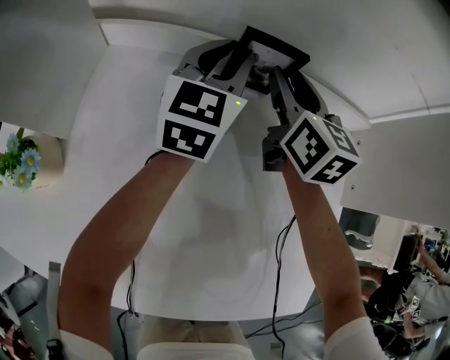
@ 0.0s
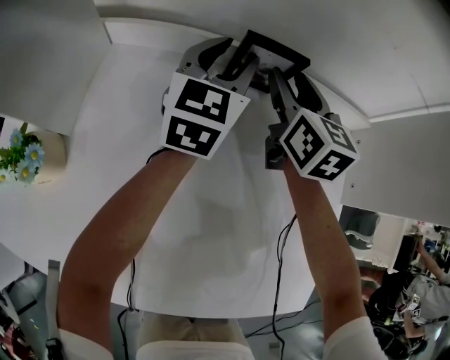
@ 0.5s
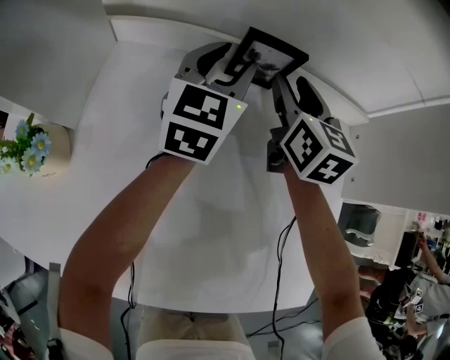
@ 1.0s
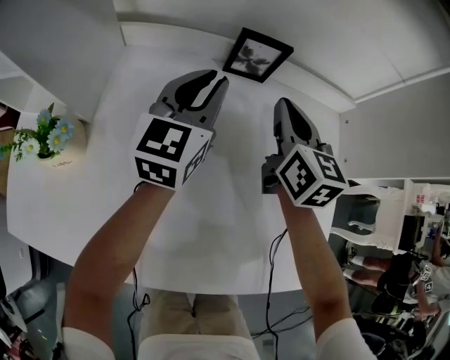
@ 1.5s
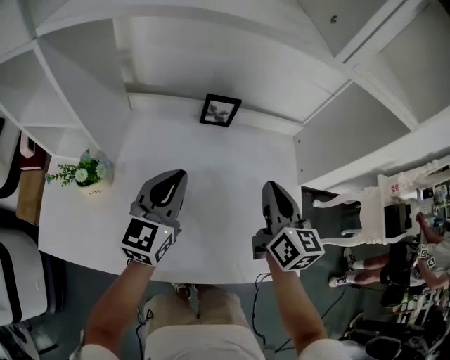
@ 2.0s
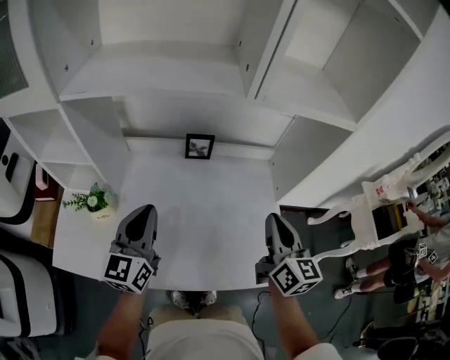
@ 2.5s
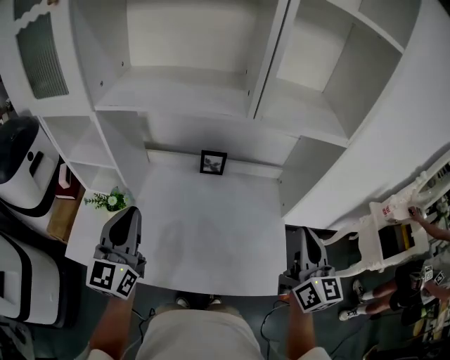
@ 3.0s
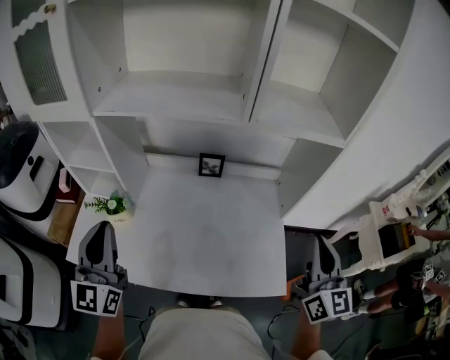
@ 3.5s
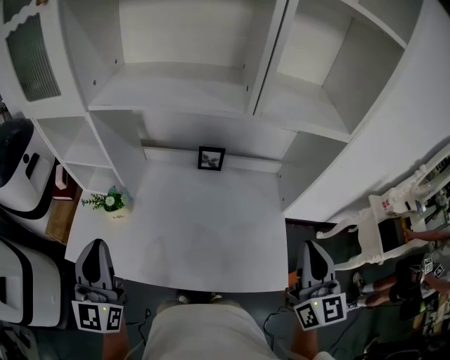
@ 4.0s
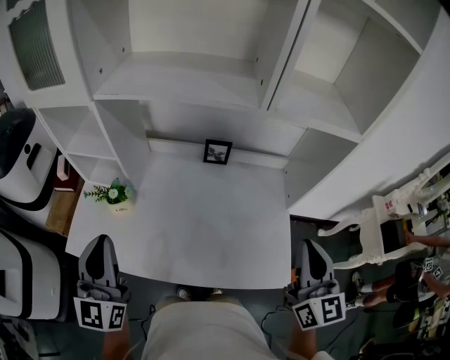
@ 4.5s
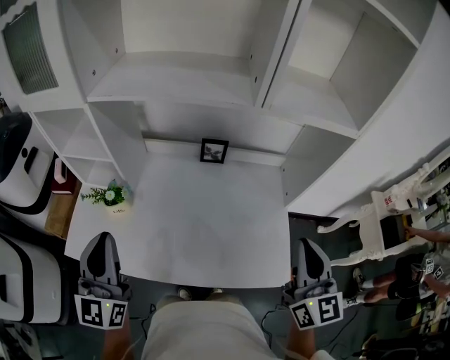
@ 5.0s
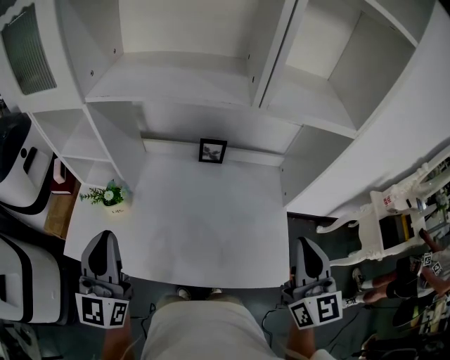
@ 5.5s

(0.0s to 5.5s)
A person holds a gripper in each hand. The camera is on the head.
0.0s - 2.0s: The right gripper shifts approximately 30 cm backward and upward, and closes; the left gripper travels backward by roughly 30 cm.
2.0s - 3.5s: The right gripper is displaced upward, backward and to the right by some 30 cm, and rotates about 20 degrees. The left gripper travels upward, backward and to the left by approximately 30 cm, and changes its angle by roughly 30 degrees.
3.5s - 5.5s: The right gripper travels to the left by roughly 5 cm.

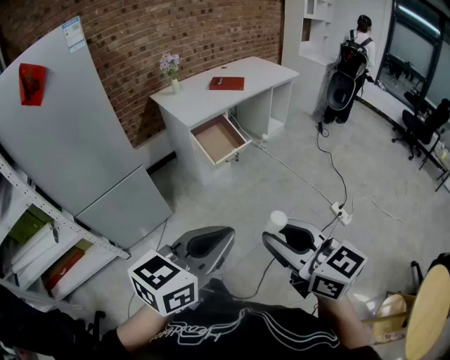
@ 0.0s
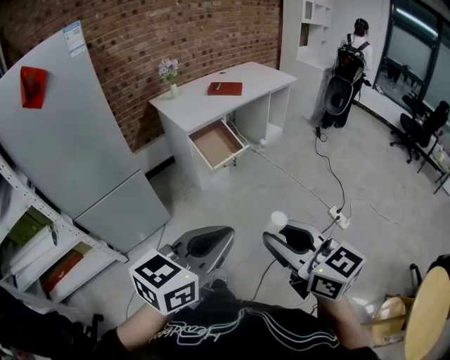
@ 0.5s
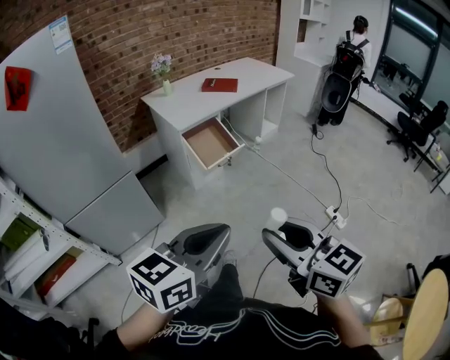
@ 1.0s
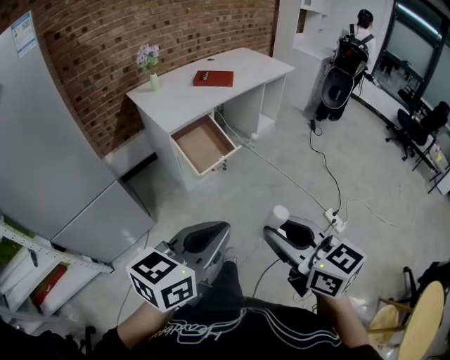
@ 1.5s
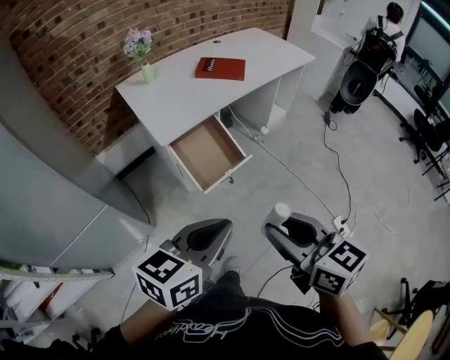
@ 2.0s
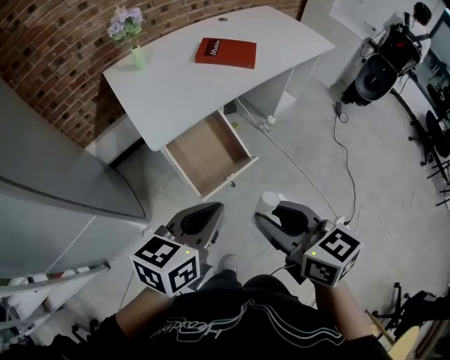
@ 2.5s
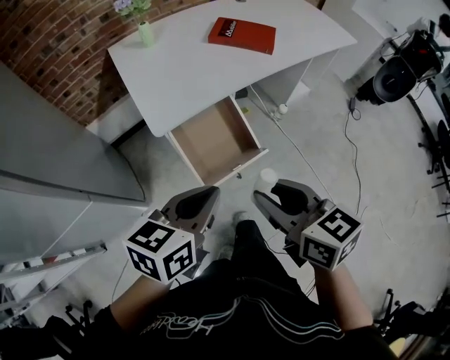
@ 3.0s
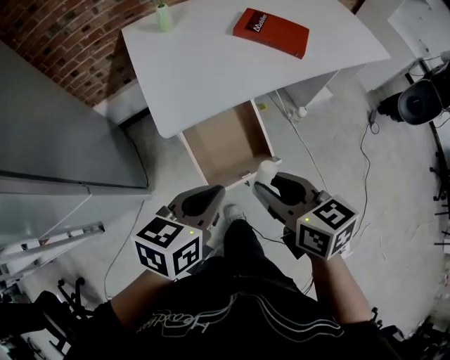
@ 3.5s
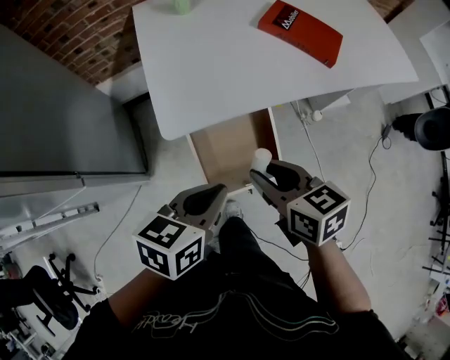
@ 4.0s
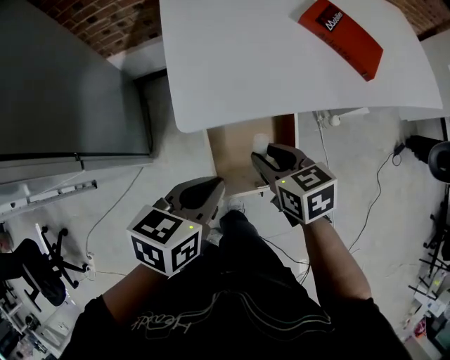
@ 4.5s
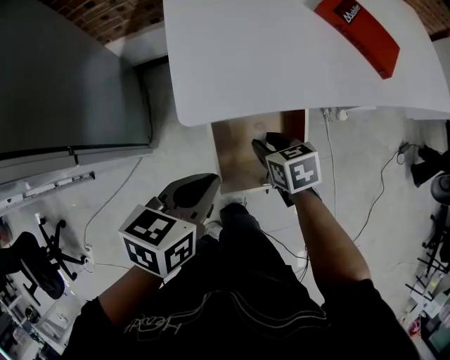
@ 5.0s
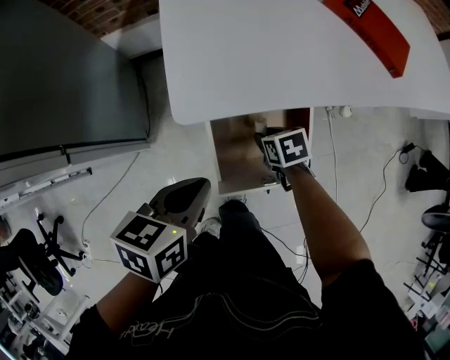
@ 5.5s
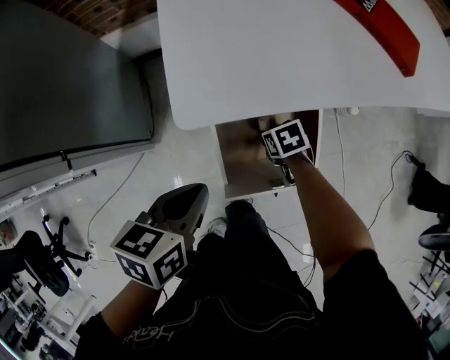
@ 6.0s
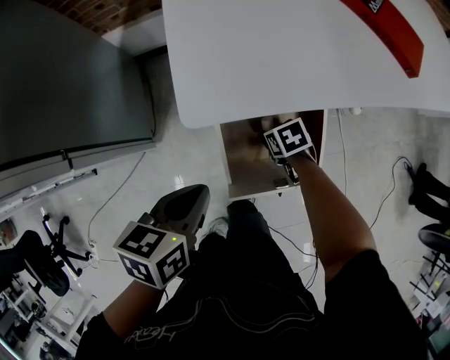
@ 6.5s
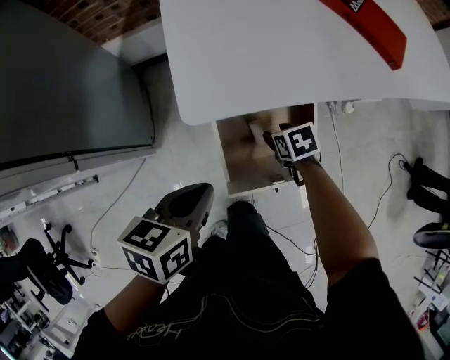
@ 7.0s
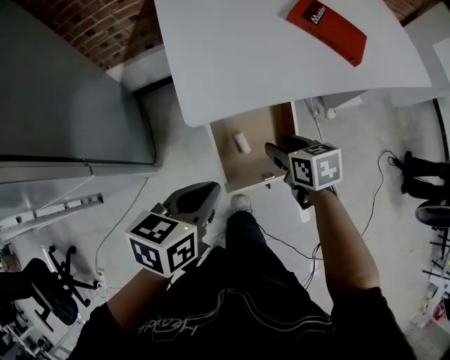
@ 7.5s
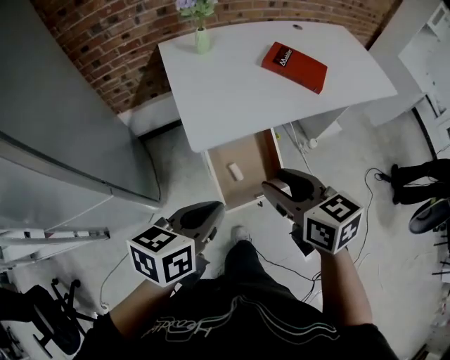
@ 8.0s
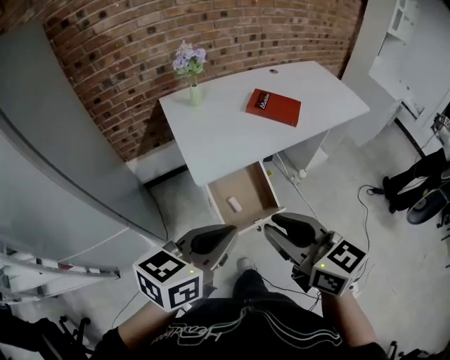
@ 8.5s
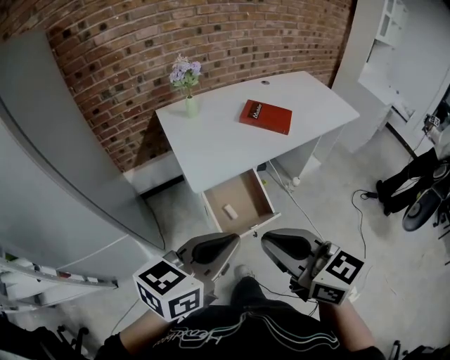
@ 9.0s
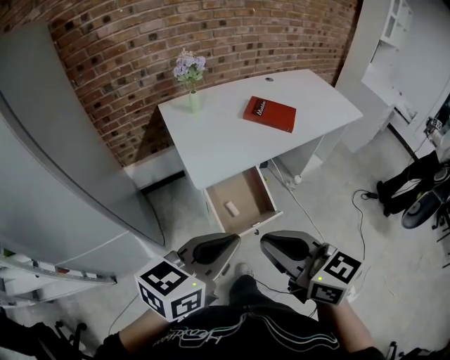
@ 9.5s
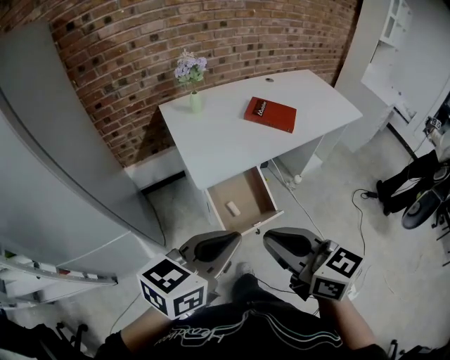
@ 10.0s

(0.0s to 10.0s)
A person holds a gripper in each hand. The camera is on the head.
0.0s - 2.0s: The two grippers travel together, forward, about 50 cm.
2.0s - 4.0s: Both grippers move forward and downward, approximately 40 cm. The left gripper rotates about 30 degrees. The right gripper changes its angle by approximately 30 degrees.
4.0s - 6.0s: The right gripper is displaced downward by some 35 cm, and tilts its fingers some 40 degrees downward. Meanwhile the left gripper is displaced downward and to the left by about 15 cm.
6.0s - 8.0s: The left gripper moves upward and backward, some 25 cm, and changes its angle by roughly 20 degrees; the right gripper goes about 50 cm upward, and tilts its fingers approximately 40 degrees upward.
8.0s - 10.0s: The left gripper is displaced upward and backward by some 20 cm, and swivels some 20 degrees. The right gripper shifts about 25 cm backward and upward, and closes up.

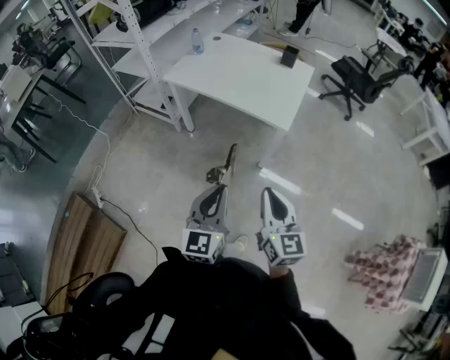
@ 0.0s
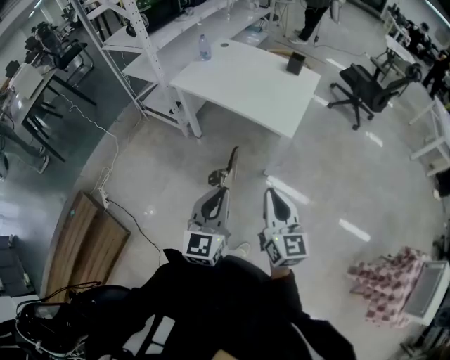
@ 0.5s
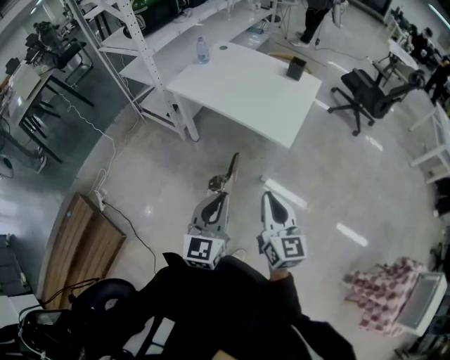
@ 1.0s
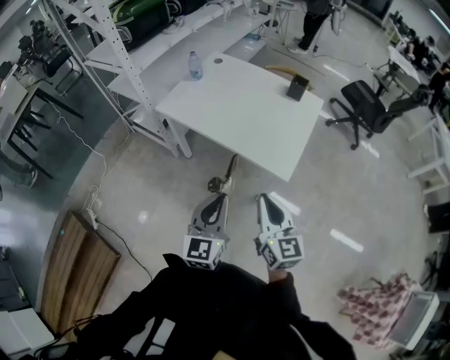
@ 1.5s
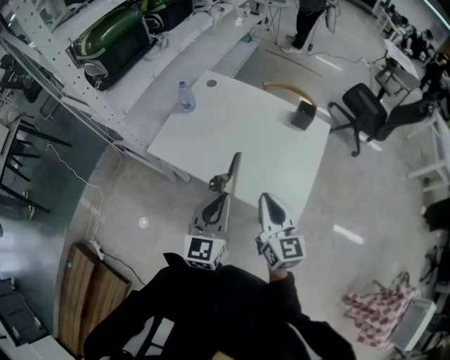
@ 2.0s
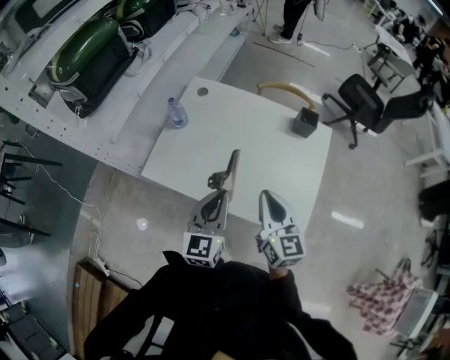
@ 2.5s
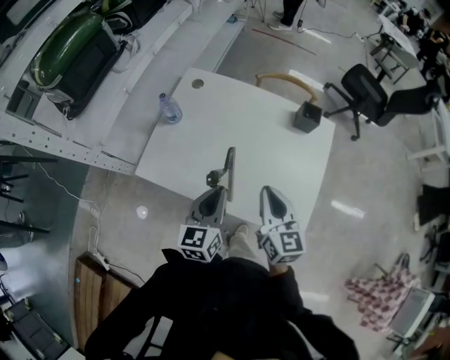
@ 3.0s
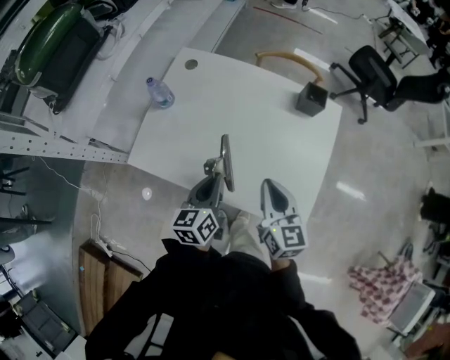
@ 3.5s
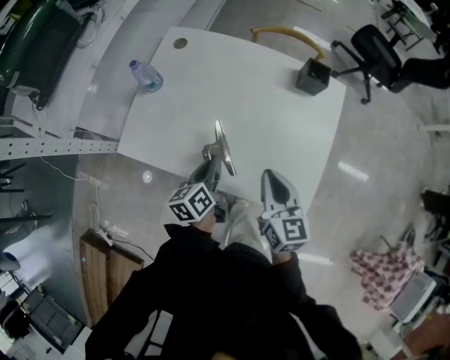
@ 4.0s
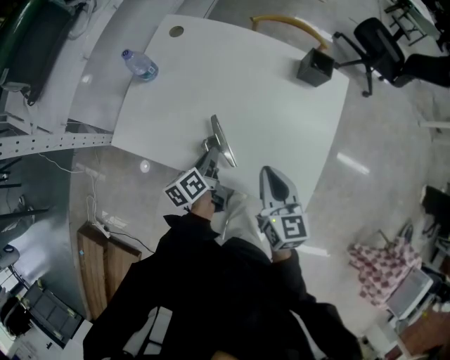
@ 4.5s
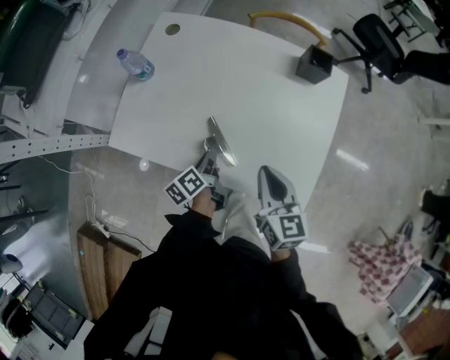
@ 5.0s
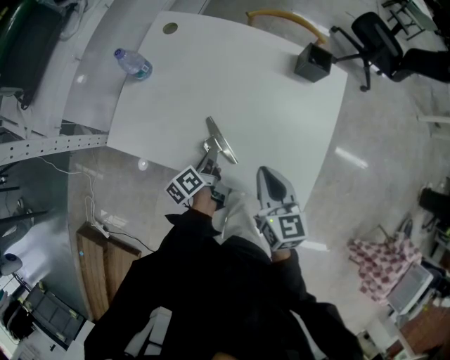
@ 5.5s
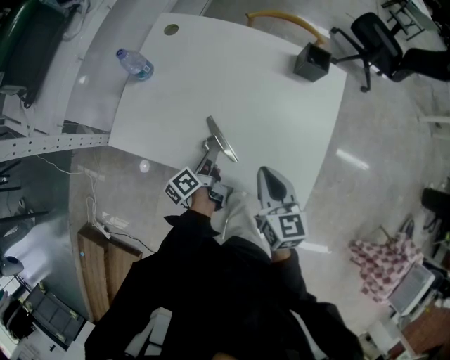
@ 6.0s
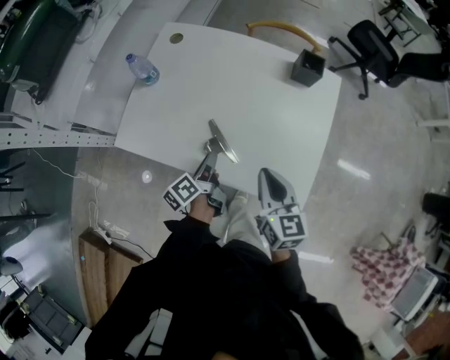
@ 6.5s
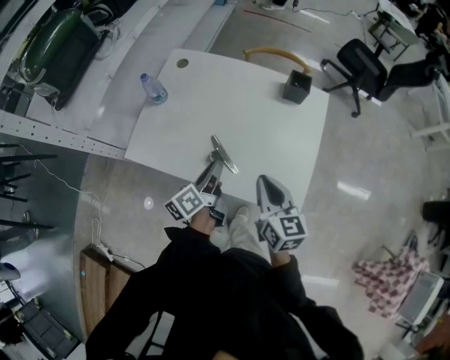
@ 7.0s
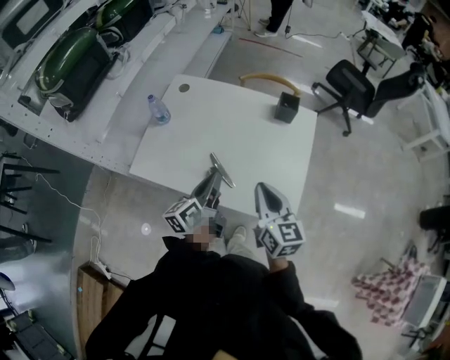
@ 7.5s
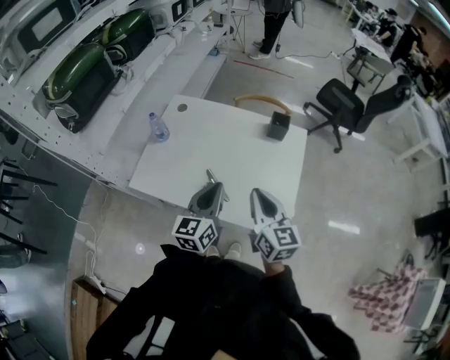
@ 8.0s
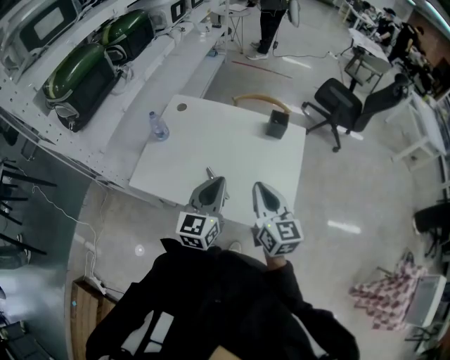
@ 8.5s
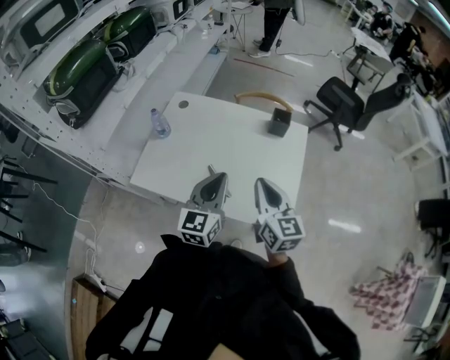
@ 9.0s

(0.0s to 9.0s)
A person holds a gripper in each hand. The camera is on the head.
0.0s - 2.0s: The two grippers travel together, forward, some 50 cm.
2.0s - 4.5s: The right gripper travels downward and forward by roughly 20 cm. The left gripper moves downward and forward, some 30 cm, and twists roughly 50 degrees counterclockwise, seen from behind.
4.5s - 7.0s: The right gripper moves about 5 cm. The left gripper travels upward by approximately 10 cm, and opens.
7.0s - 9.0s: The right gripper moves upward, some 10 cm; the left gripper goes roughly 15 cm upward, rotates around the line of its fingers by some 60 degrees, clockwise from behind, and closes up.

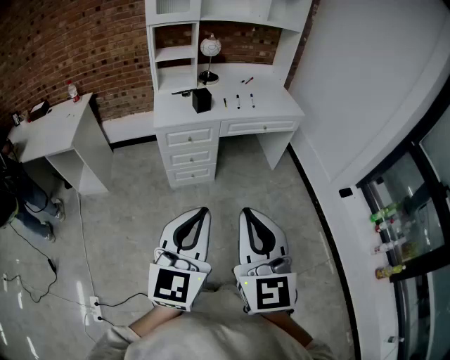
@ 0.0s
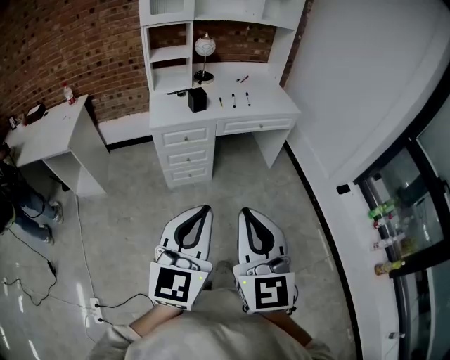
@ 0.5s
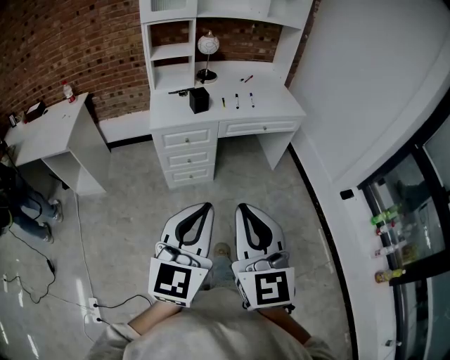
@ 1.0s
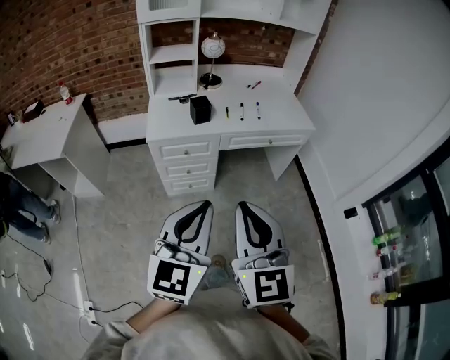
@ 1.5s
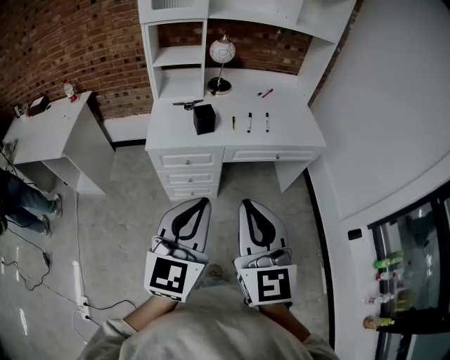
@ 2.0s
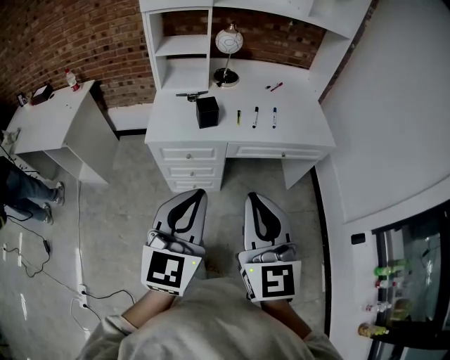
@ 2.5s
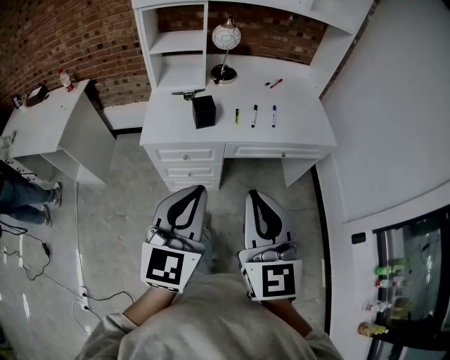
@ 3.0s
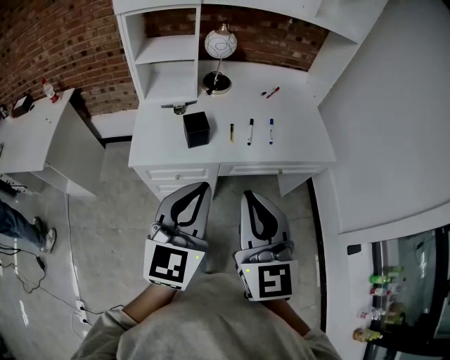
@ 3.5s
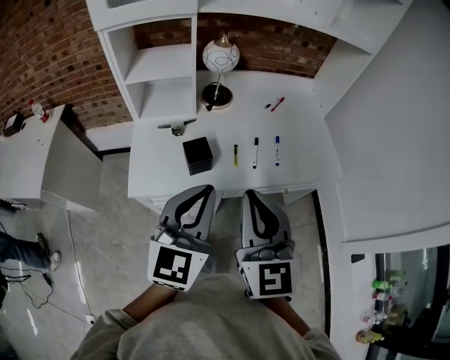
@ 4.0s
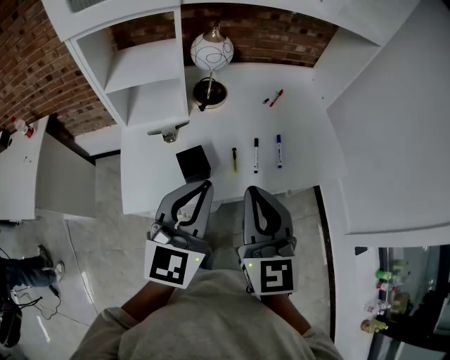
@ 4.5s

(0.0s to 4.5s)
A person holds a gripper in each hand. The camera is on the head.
0.0s - 2.0s: The two grippers go about 30 cm forward.
2.0s - 4.5s: Both grippers are carried forward, roughly 40 cm.
